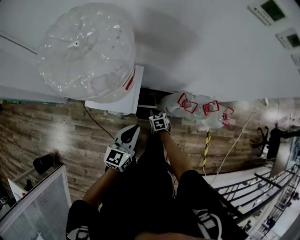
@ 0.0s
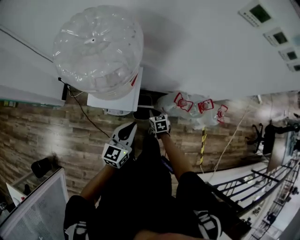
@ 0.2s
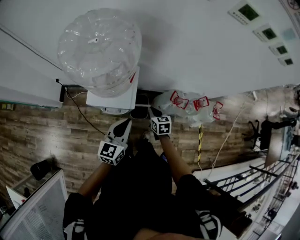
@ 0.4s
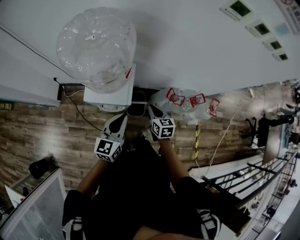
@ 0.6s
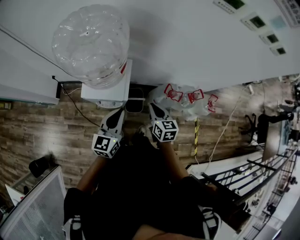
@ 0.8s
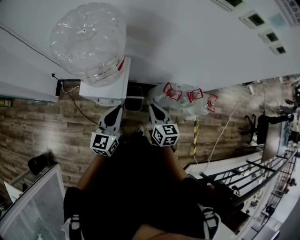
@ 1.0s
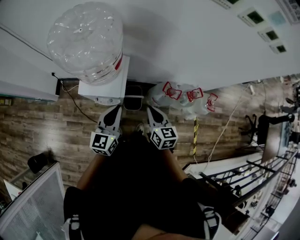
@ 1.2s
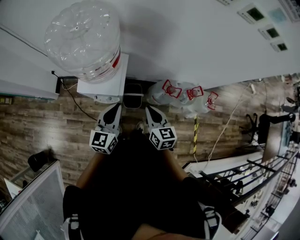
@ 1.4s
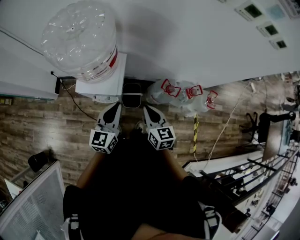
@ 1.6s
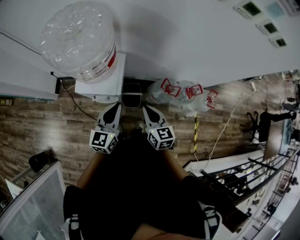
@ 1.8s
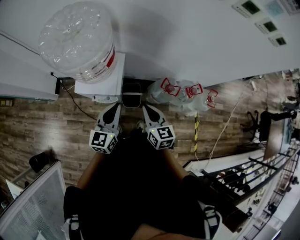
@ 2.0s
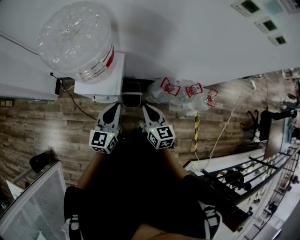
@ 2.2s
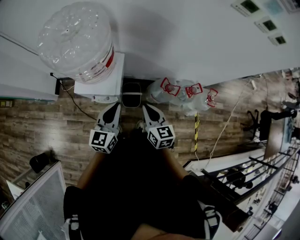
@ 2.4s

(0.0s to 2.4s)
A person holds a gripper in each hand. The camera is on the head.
0.0s - 1.2s: The left gripper travels upward by some 10 cm, while the right gripper is displaced upward by roughly 30 cm, and tilts its fingers approximately 30 degrees upward.
1.2s - 2.4s: The grippers move only a little.

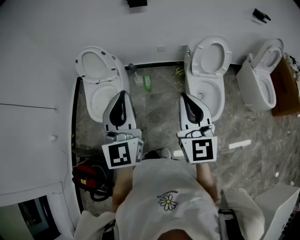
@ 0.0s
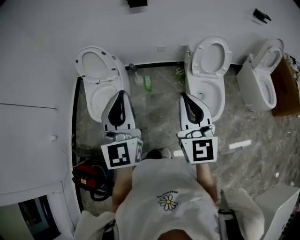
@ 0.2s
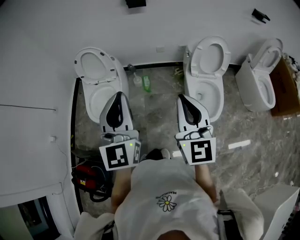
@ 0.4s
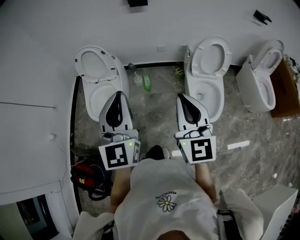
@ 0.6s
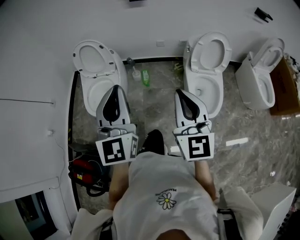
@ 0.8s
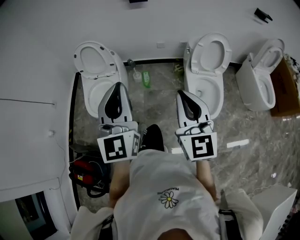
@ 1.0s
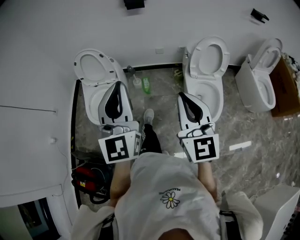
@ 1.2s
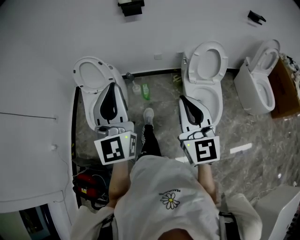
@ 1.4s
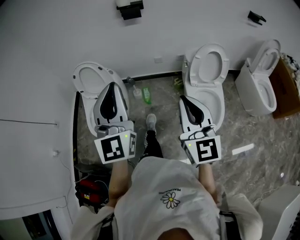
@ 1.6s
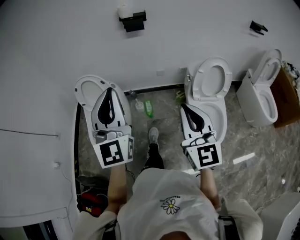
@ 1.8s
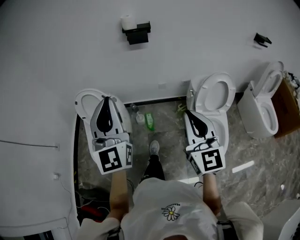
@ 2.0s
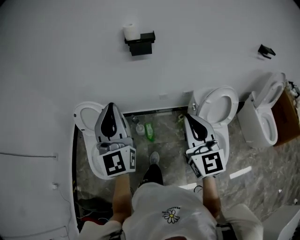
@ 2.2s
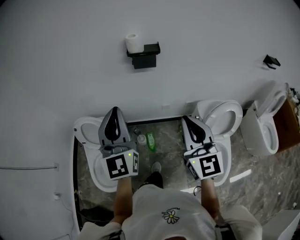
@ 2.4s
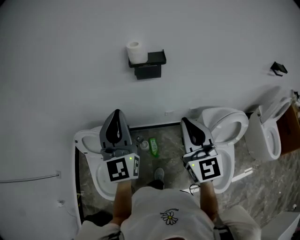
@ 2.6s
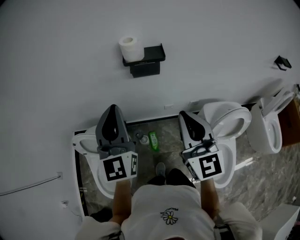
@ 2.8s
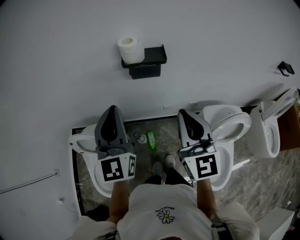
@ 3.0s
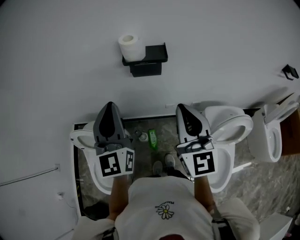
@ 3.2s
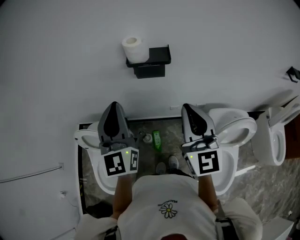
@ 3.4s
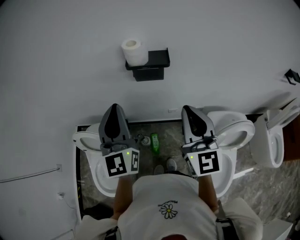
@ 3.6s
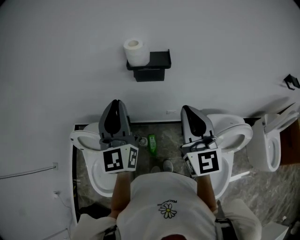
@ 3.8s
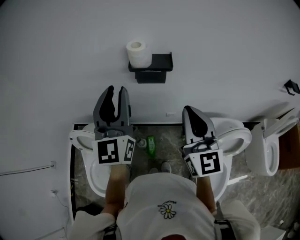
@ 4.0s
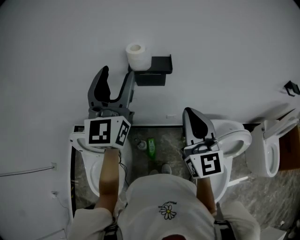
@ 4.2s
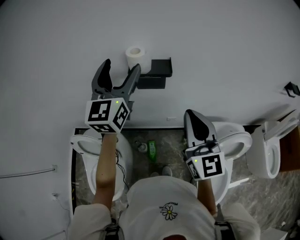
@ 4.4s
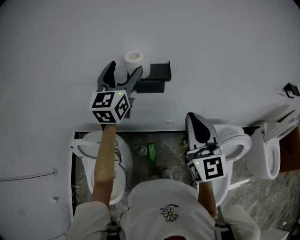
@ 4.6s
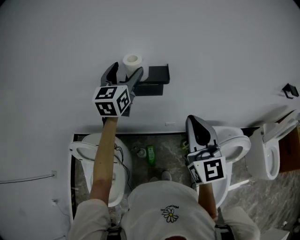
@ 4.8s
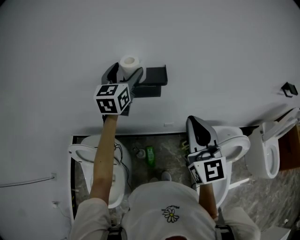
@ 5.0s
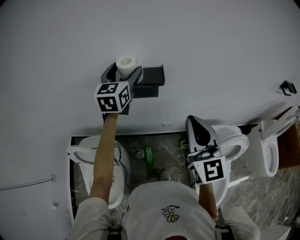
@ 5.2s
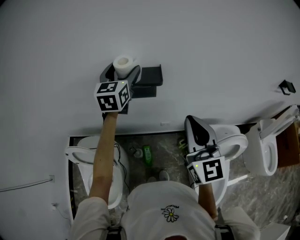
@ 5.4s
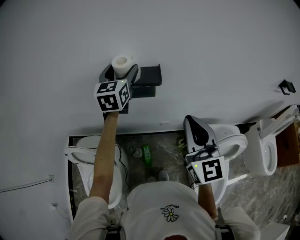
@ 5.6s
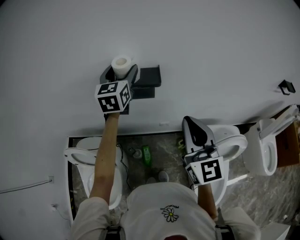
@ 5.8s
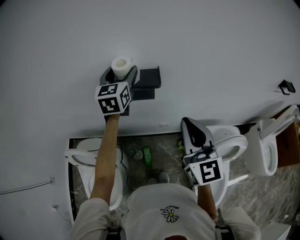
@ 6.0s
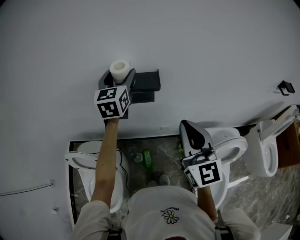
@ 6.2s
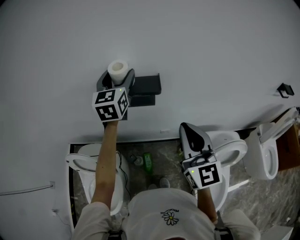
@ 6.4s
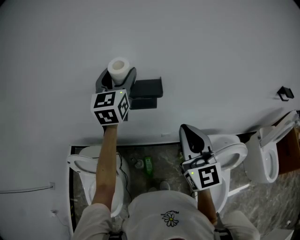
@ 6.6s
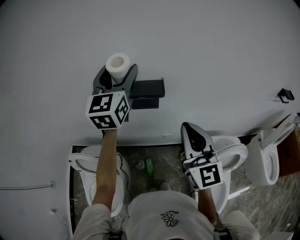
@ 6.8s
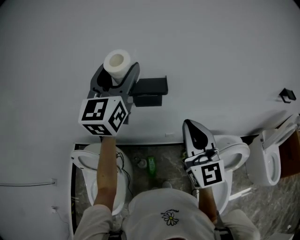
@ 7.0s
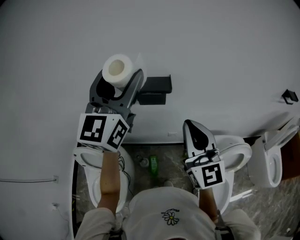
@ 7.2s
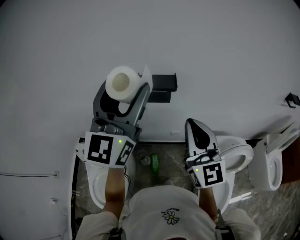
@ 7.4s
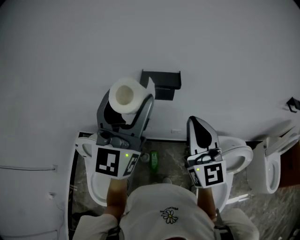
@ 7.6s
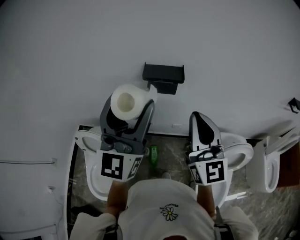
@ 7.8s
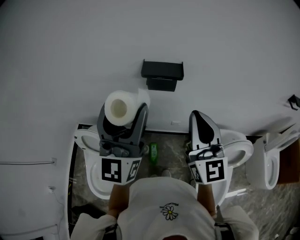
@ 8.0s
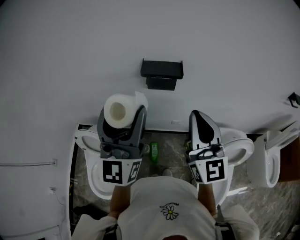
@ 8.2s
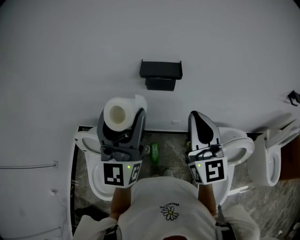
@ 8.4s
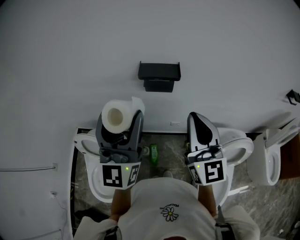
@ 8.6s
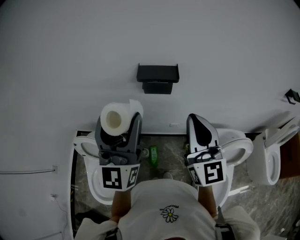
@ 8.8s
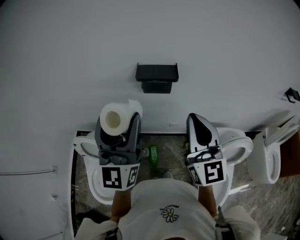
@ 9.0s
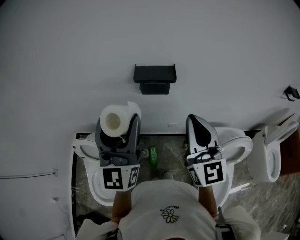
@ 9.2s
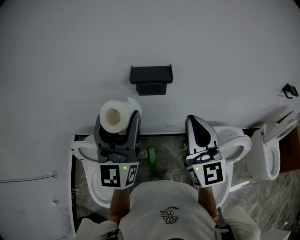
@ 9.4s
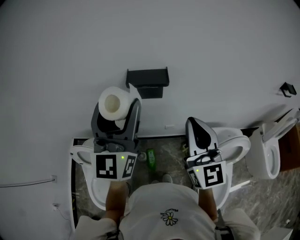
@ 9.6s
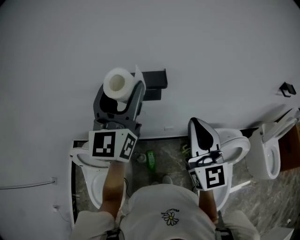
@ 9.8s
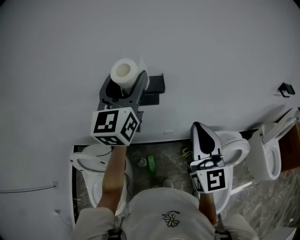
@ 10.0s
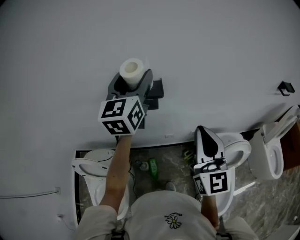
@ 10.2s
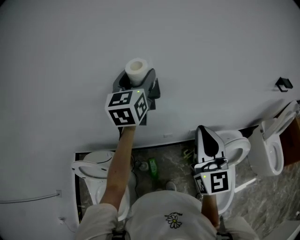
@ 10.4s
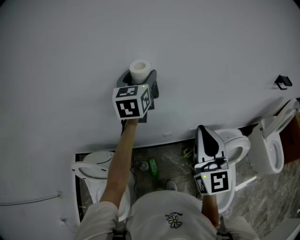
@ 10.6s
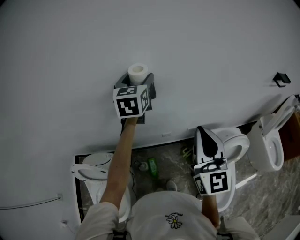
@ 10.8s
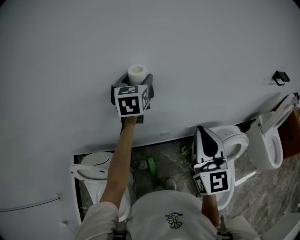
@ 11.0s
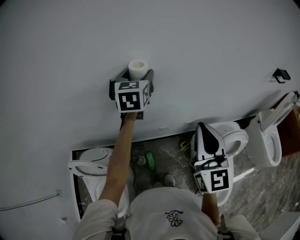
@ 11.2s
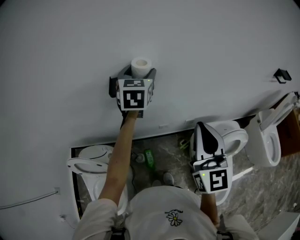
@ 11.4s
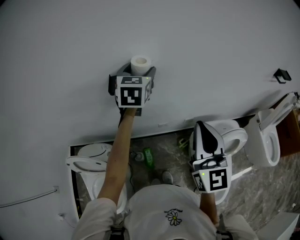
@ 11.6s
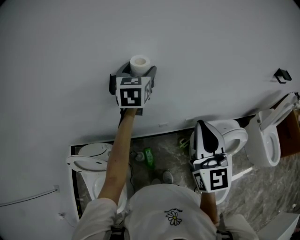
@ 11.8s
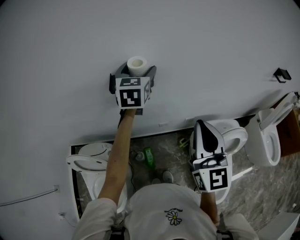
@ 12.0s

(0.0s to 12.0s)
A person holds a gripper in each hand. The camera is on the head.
0.0s - 1.6s: The two grippers go some 5 cm forward.
1.6s - 3.0s: The pair of grippers is taken forward, approximately 50 cm.
3.0s - 4.4s: The left gripper is displaced forward and upward by some 15 cm, and opens its fingers. Meanwhile the right gripper changes place by some 5 cm.
4.4s - 6.0s: The left gripper shifts some 15 cm forward and downward.
6.0s - 7.6s: The right gripper ends up about 10 cm from where it was; the left gripper is displaced backward and upward by roughly 30 cm, and rotates some 30 degrees.
7.6s - 9.0s: The left gripper heads downward, covering some 5 cm.
9.0s - 10.4s: The right gripper shifts about 10 cm to the right; the left gripper heads forward and to the right, covering approximately 25 cm, and rotates approximately 30 degrees.
10.4s - 12.0s: The left gripper travels downward by approximately 10 cm.

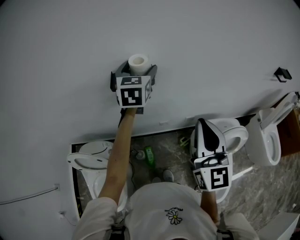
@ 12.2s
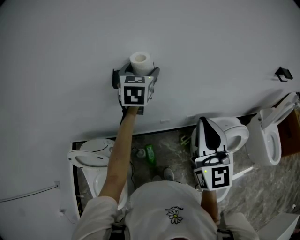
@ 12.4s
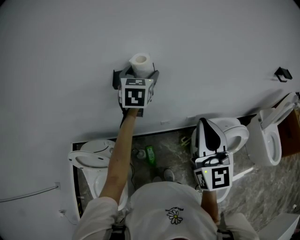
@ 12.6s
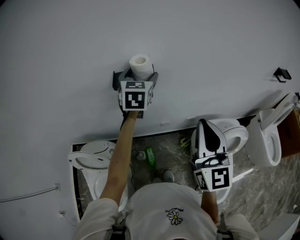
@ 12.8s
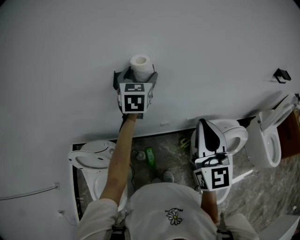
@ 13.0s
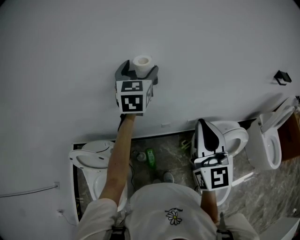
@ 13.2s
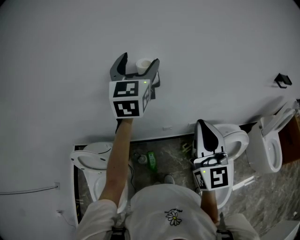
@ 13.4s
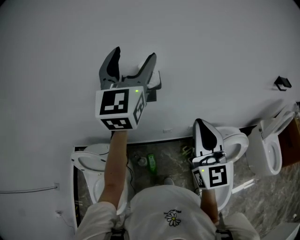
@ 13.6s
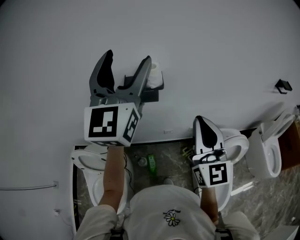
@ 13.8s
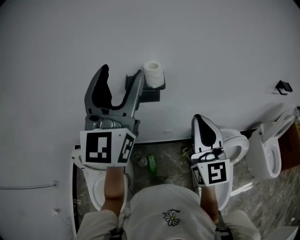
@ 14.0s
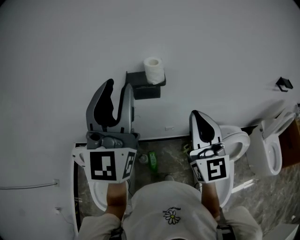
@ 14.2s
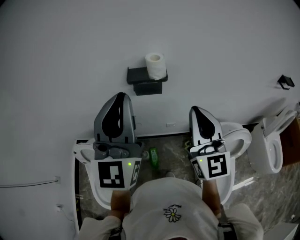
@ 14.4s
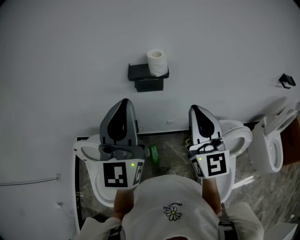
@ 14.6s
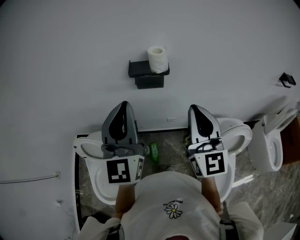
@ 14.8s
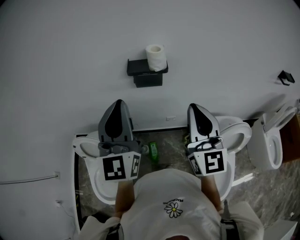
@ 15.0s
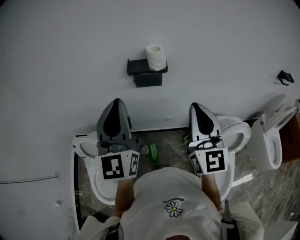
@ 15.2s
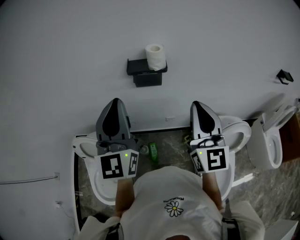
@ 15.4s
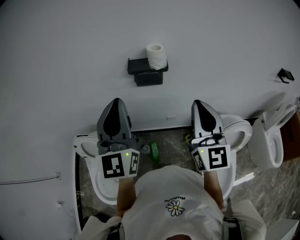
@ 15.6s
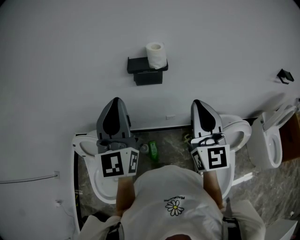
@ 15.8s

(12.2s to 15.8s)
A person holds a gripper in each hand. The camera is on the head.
12.2s - 14.0s: The left gripper goes some 30 cm backward and upward, and tilts its fingers approximately 40 degrees upward. The right gripper moves some 5 cm.
14.0s - 15.8s: The left gripper heads downward, backward and to the left, covering roughly 15 cm, and closes its fingers.

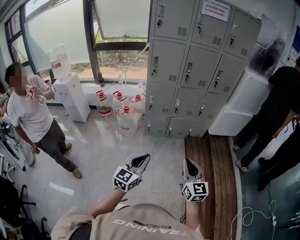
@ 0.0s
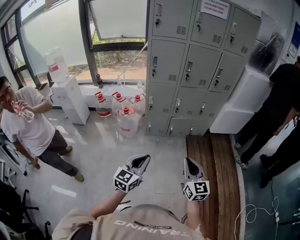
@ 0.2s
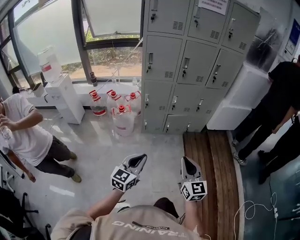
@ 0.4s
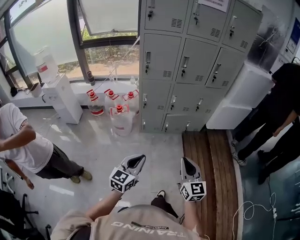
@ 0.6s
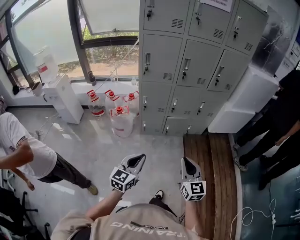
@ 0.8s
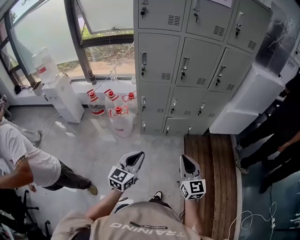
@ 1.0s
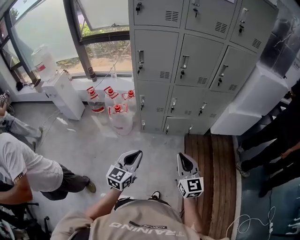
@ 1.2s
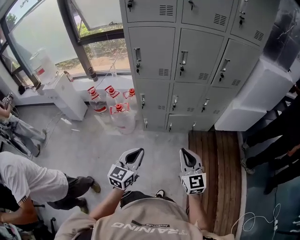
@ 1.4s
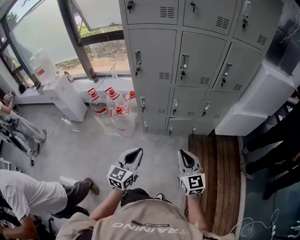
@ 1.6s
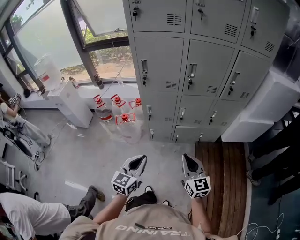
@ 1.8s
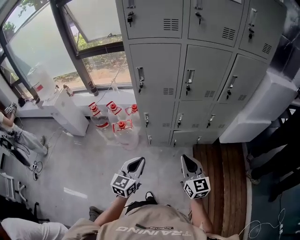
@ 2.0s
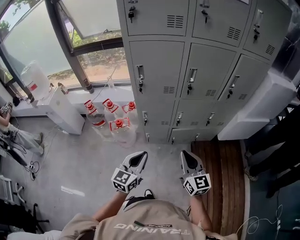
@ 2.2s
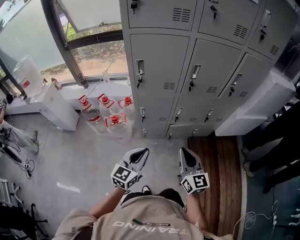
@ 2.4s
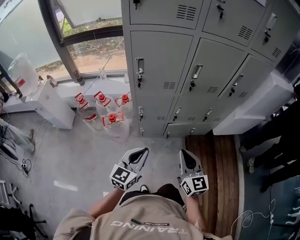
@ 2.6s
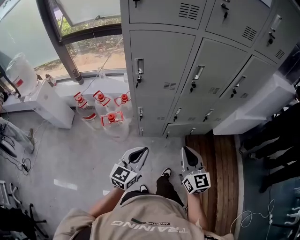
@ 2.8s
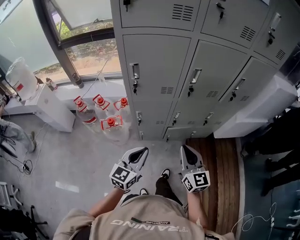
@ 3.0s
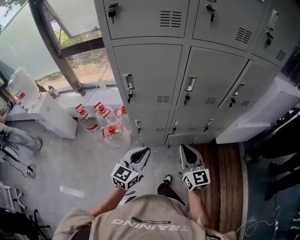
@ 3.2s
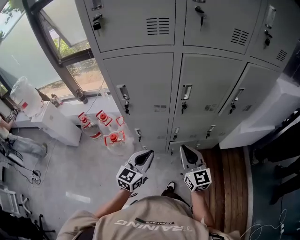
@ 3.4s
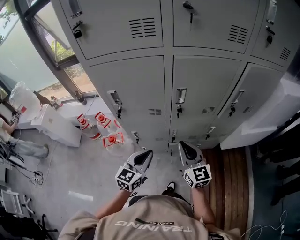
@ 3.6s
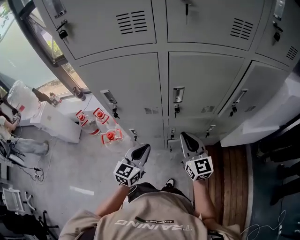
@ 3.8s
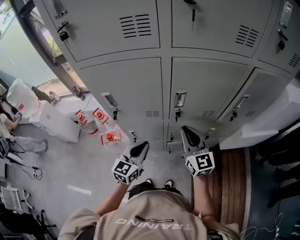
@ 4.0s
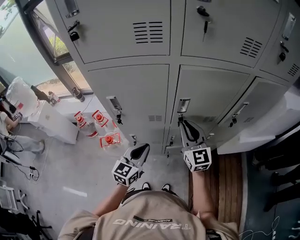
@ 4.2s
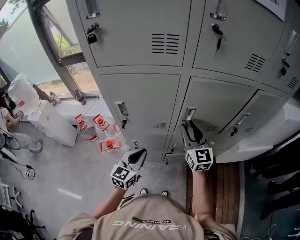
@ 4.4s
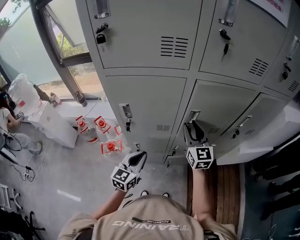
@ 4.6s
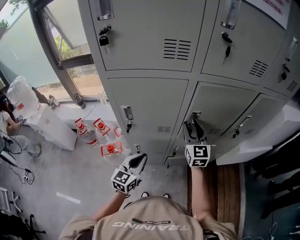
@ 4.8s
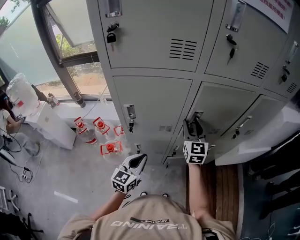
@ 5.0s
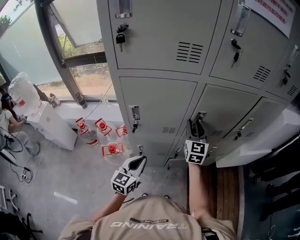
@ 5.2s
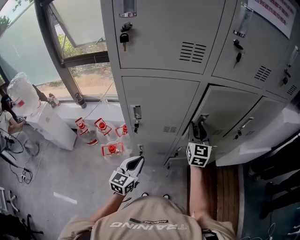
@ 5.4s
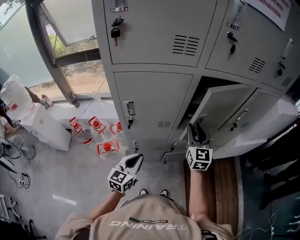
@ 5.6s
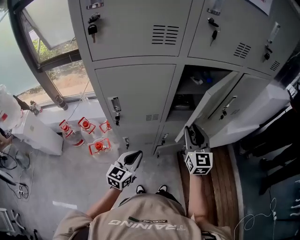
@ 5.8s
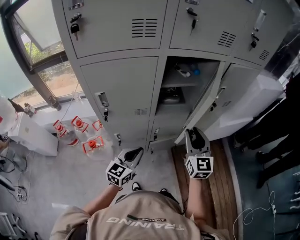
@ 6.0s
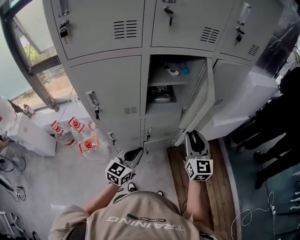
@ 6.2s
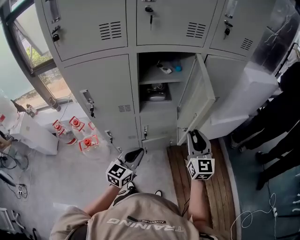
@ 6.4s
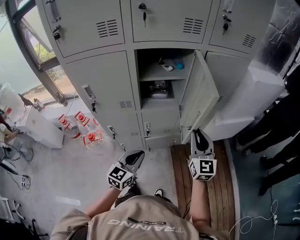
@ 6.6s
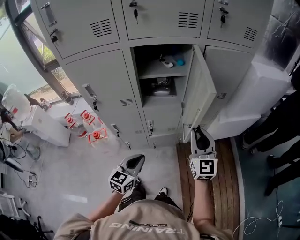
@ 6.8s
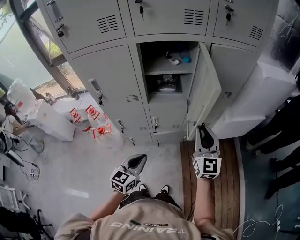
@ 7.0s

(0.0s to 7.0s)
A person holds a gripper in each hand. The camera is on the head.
0.0s - 1.4s: The grippers both shift forward by some 25 cm.
1.4s - 2.8s: The left gripper is displaced forward by approximately 20 cm, while the right gripper heads forward and to the left, covering about 20 cm.
2.8s - 4.2s: The two grippers go approximately 25 cm forward.
4.2s - 5.6s: The left gripper heads to the left, covering roughly 10 cm; the right gripper opens its fingers.
5.6s - 7.0s: Both grippers move to the right, approximately 25 cm.
